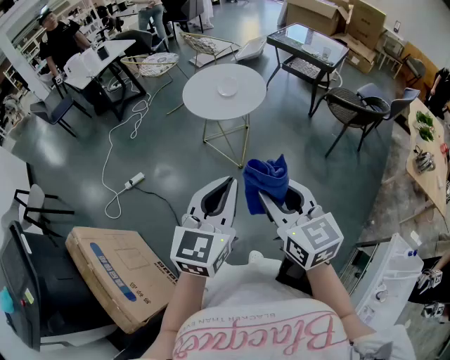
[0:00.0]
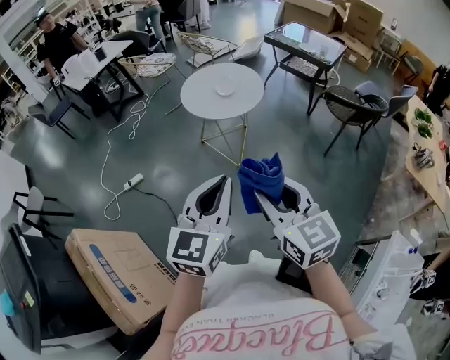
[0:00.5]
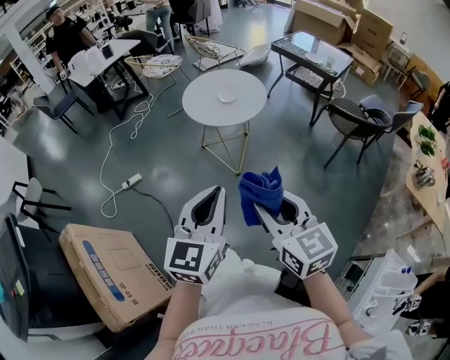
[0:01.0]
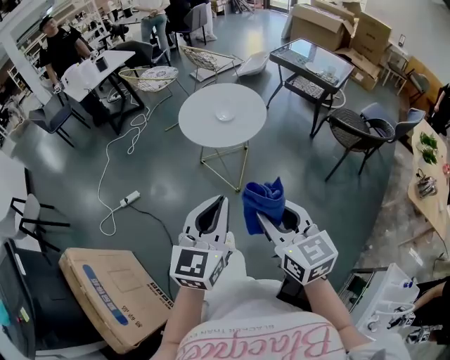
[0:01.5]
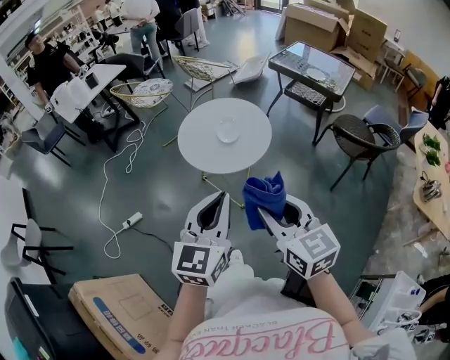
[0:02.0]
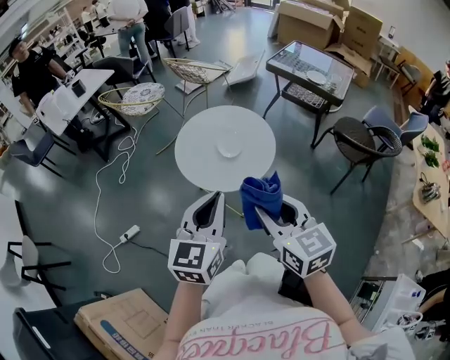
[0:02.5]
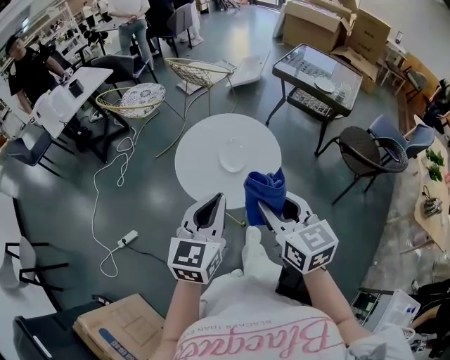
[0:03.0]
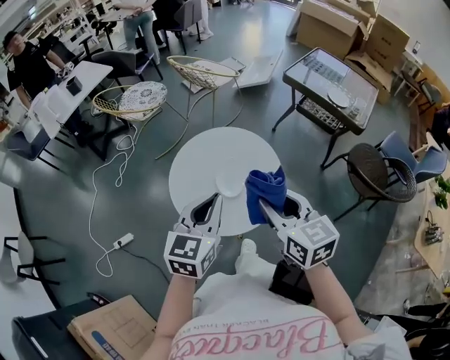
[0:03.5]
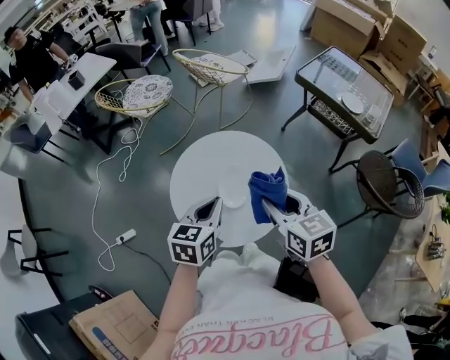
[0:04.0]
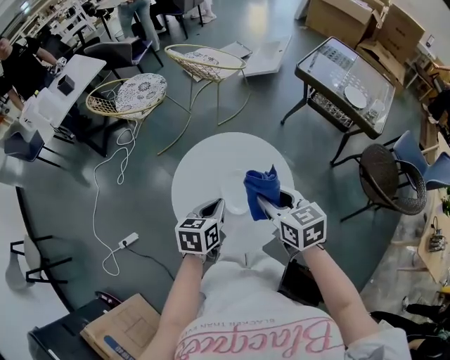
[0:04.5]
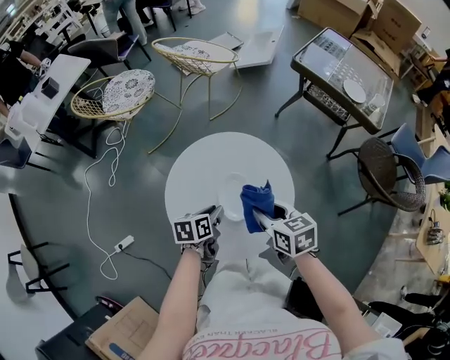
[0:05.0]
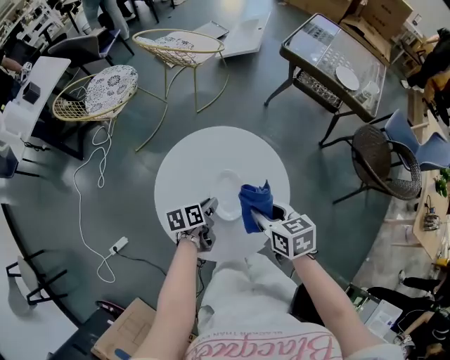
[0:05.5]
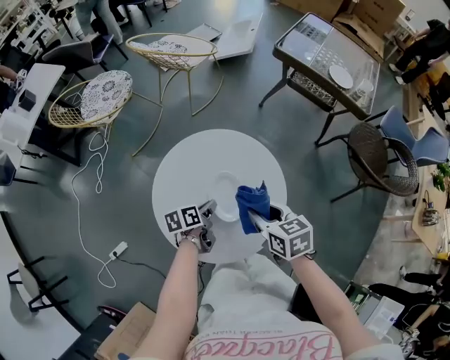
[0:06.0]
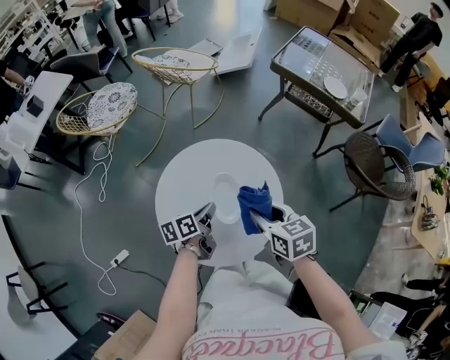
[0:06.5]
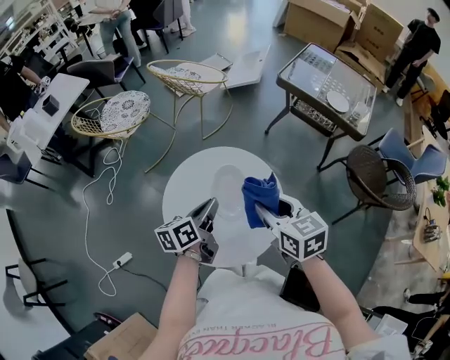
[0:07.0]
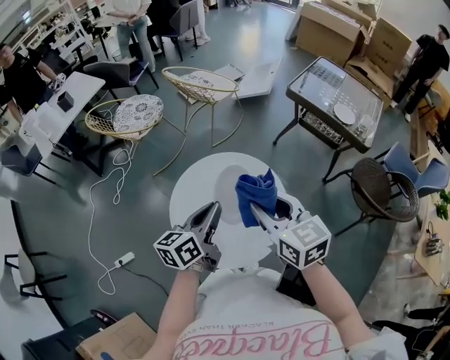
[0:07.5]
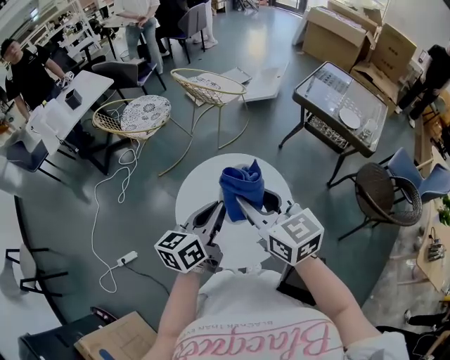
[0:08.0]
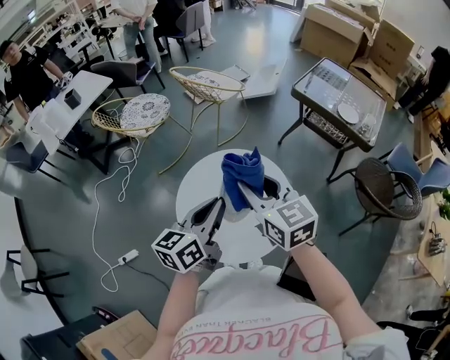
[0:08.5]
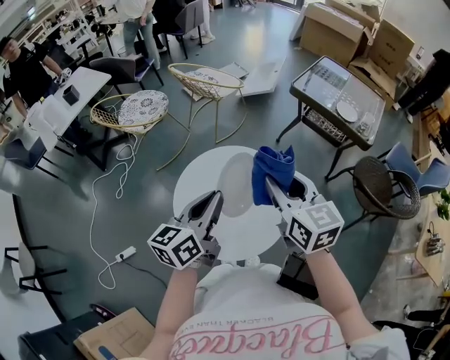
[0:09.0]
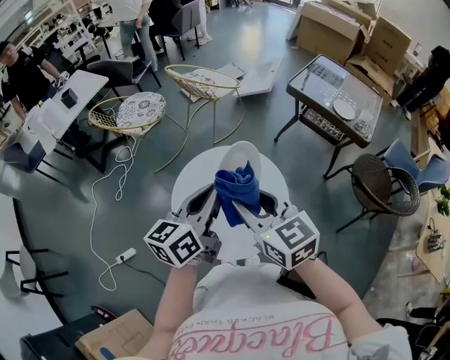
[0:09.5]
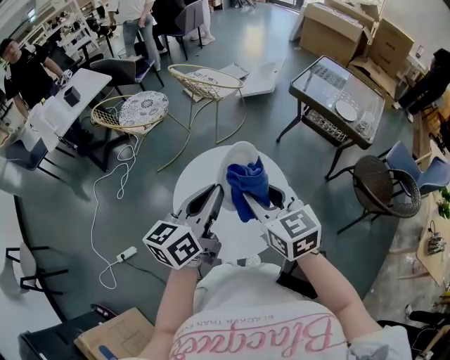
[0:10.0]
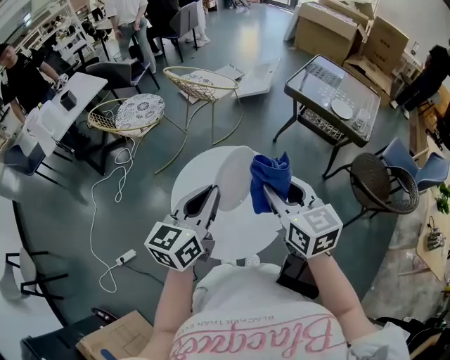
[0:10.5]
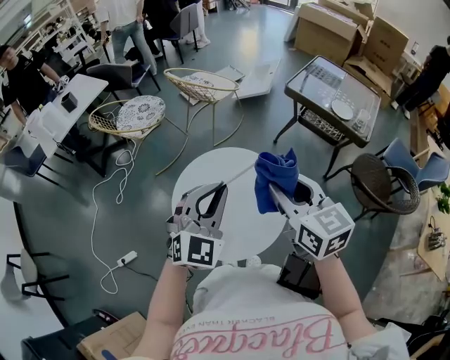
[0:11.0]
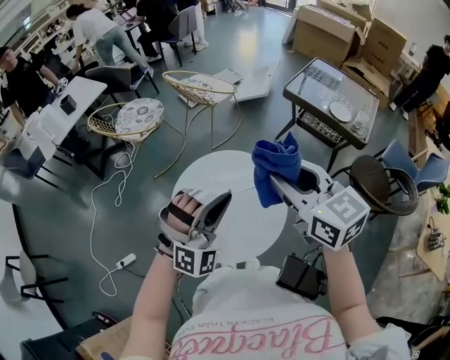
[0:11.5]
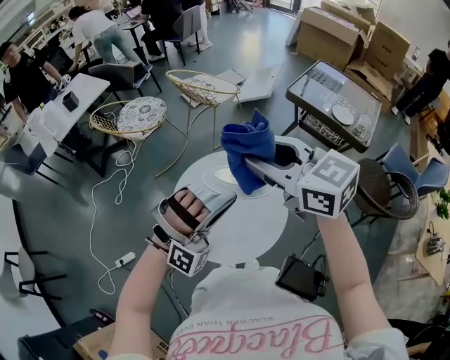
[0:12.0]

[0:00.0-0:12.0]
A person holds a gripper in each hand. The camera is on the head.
0:00.0 to 0:02.0: The grippers both shift forward by about 25 cm.
0:02.0 to 0:04.0: The right gripper is displaced forward by some 40 cm. The left gripper is displaced forward and downward by roughly 40 cm, and rotates approximately 30 degrees.
0:04.0 to 0:06.0: The left gripper moves downward, about 25 cm, and rotates roughly 50 degrees. The right gripper shifts roughly 15 cm downward, and turns by some 20 degrees.
0:06.0 to 0:08.0: Both grippers move upward, some 25 cm. The left gripper angles its fingers upward, by some 30 degrees, while the right gripper swivels approximately 40 degrees.
0:08.0 to 0:10.0: The left gripper shifts some 5 cm upward. Meanwhile the right gripper goes to the right and returns, some 5 cm each way.
0:10.0 to 0:12.0: The right gripper is displaced upward by roughly 10 cm. Meanwhile the left gripper changes place by roughly 5 cm, and rolls clockwise, seen from behind, by approximately 120 degrees.

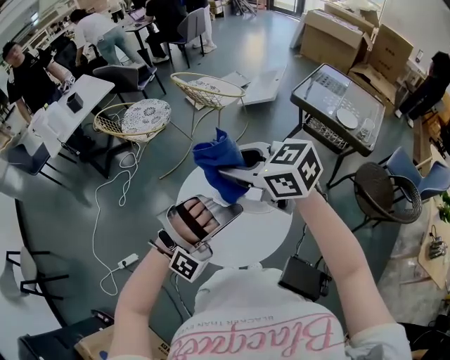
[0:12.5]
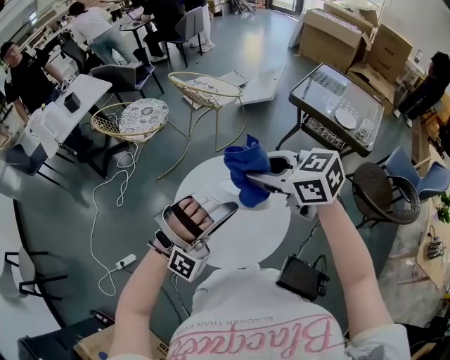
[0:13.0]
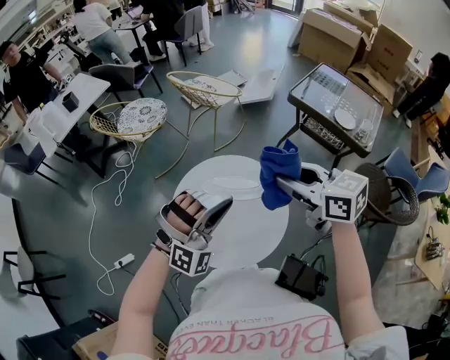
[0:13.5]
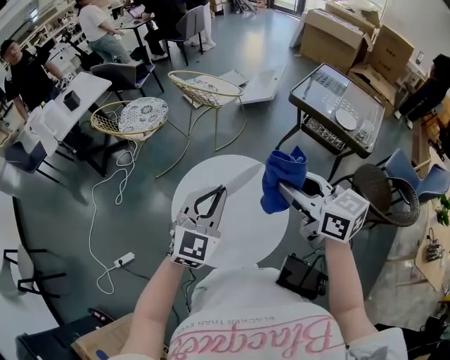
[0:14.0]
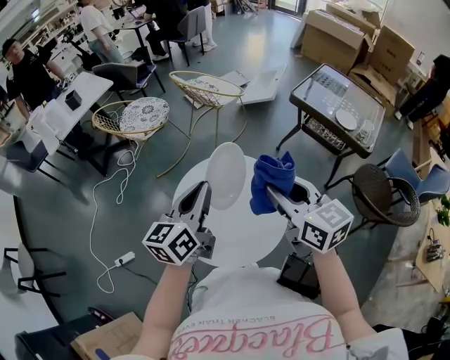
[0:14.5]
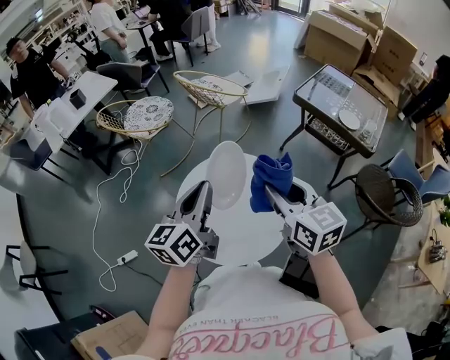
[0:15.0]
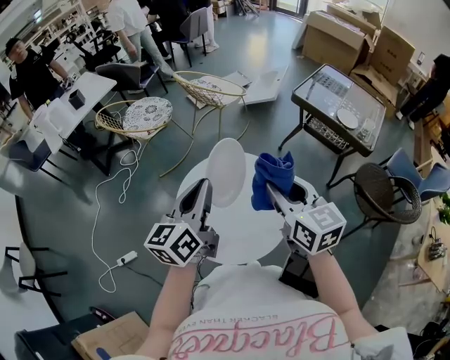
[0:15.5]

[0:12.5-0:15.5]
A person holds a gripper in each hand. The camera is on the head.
0:12.5 to 0:14.0: The left gripper is displaced forward by roughly 10 cm, and rolls counterclockwise, seen from behind, by approximately 80 degrees. The right gripper shifts approximately 15 cm to the right, and rotates roughly 30 degrees.
0:14.0 to 0:15.5: The left gripper goes roughly 5 cm to the left, and rolls counterclockwise, seen from behind, by approximately 50 degrees.

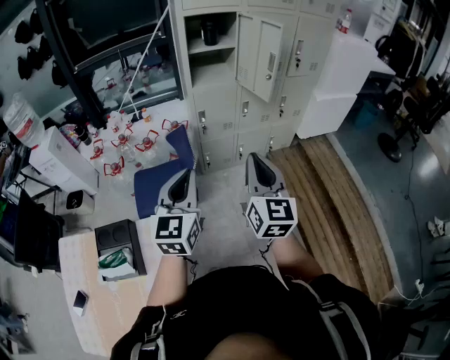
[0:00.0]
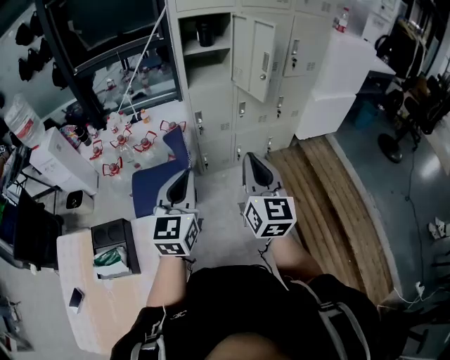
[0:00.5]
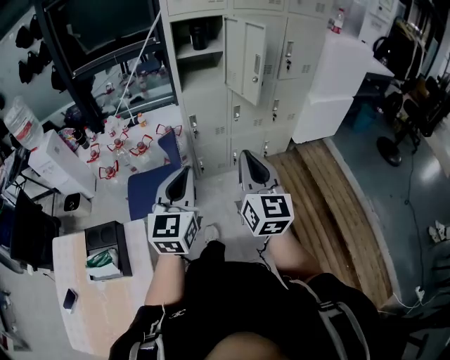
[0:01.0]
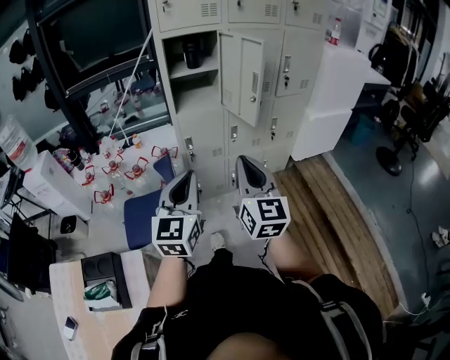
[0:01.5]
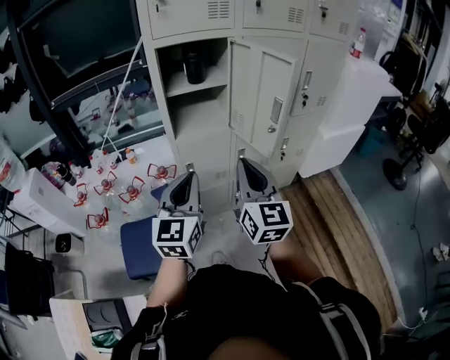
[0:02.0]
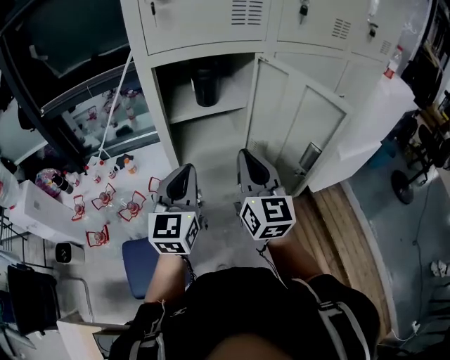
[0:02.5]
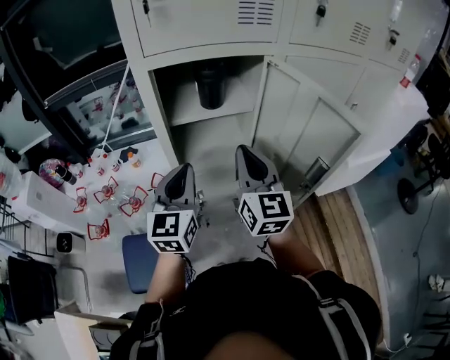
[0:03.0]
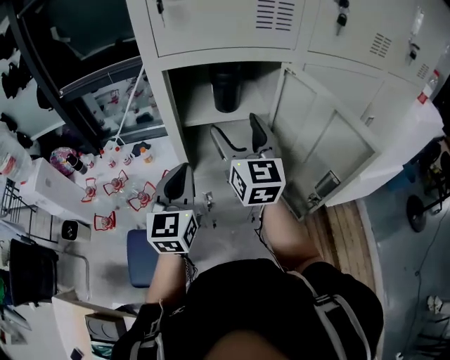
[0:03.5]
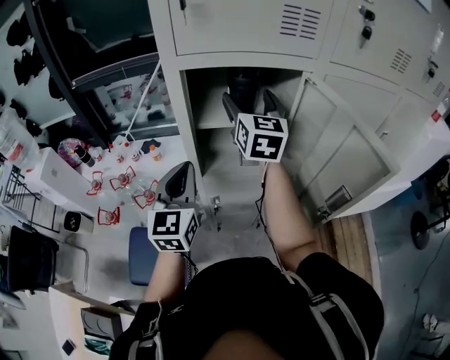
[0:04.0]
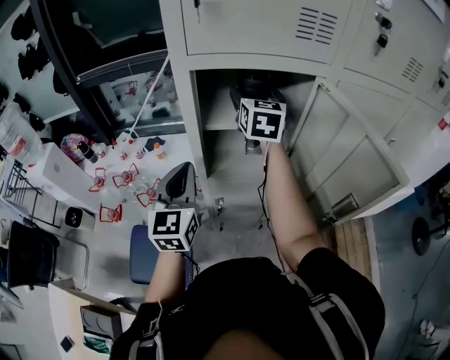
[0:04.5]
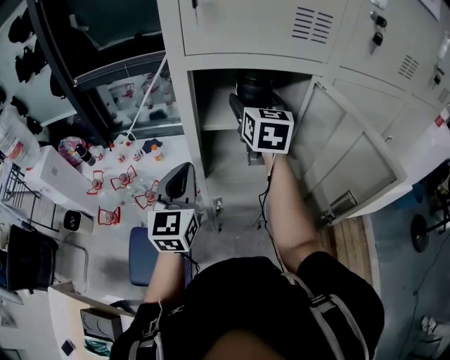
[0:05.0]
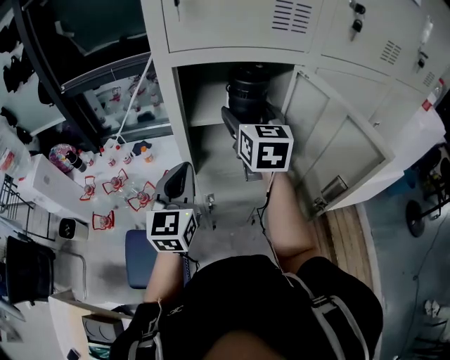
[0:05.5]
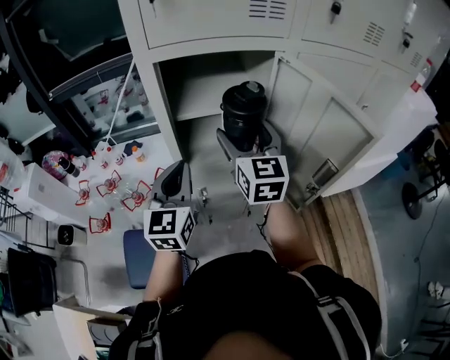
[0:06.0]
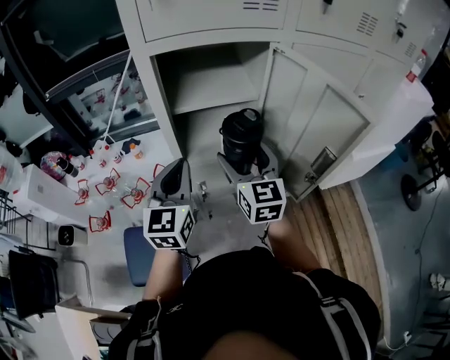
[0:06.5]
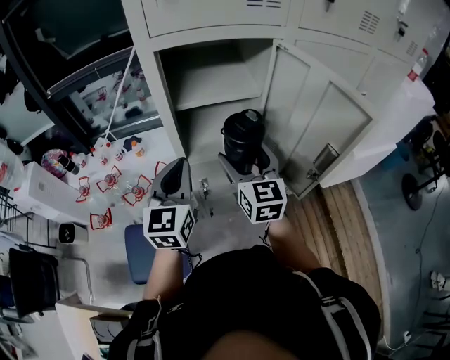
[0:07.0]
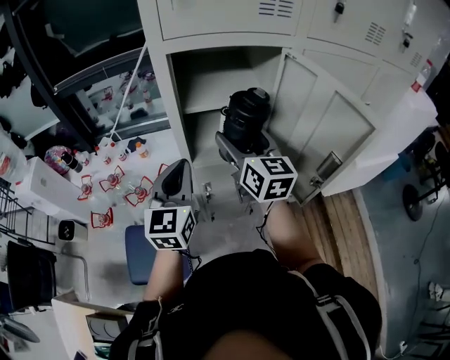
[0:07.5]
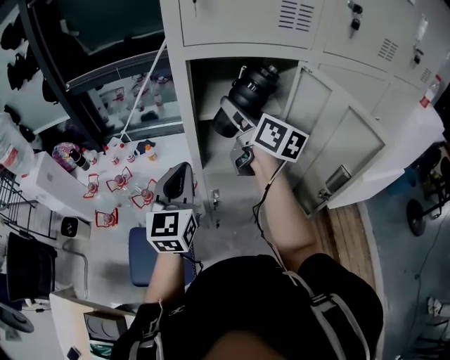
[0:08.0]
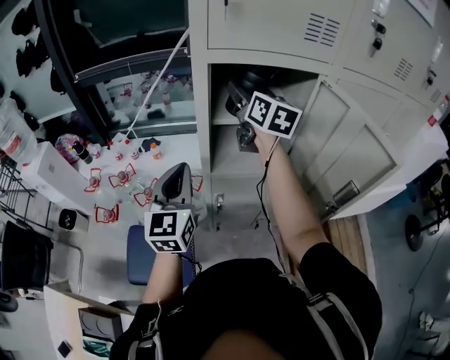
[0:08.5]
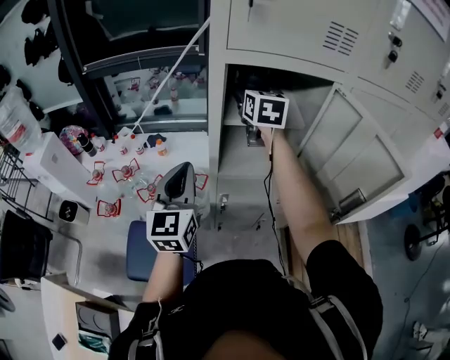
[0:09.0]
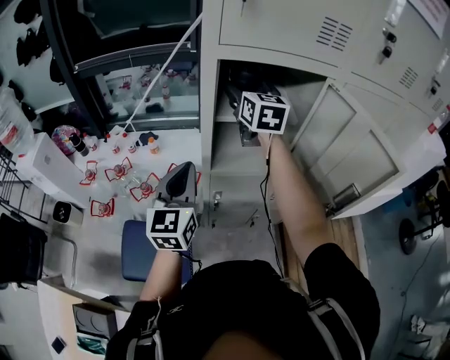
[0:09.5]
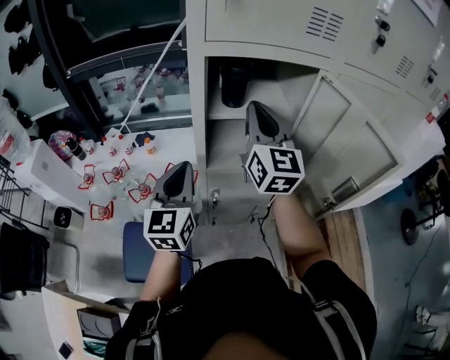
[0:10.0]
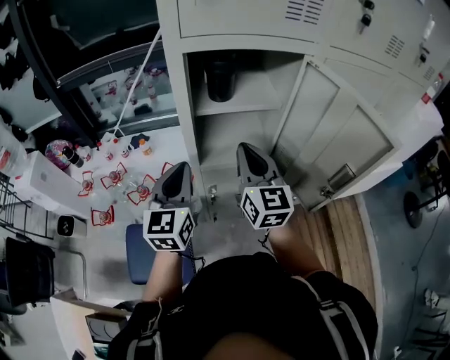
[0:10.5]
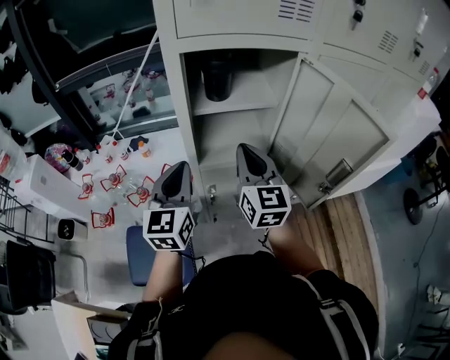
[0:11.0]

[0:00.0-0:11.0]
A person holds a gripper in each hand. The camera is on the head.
0:00.0 to 0:02.0: Both grippers travel together forward, some 35 cm.
0:02.0 to 0:03.5: Both grippers move forward, roughly 30 cm. The right gripper opens its fingers.
0:03.5 to 0:05.5: The right gripper travels forward by approximately 5 cm.
0:05.5 to 0:07.5: The right gripper is displaced backward and downward by approximately 10 cm.
0:07.5 to 0:09.0: The right gripper goes about 20 cm forward, while the left gripper heads to the left, covering about 10 cm.
0:09.0 to 0:11.0: The right gripper moves backward and downward, some 25 cm, and closes its fingers. Meanwhile the left gripper moves to the right, some 5 cm.
